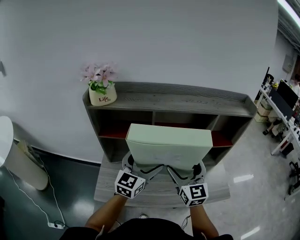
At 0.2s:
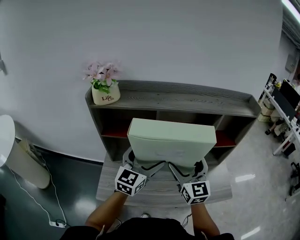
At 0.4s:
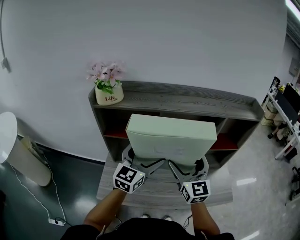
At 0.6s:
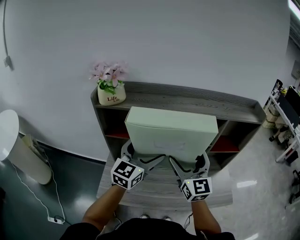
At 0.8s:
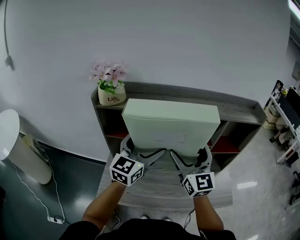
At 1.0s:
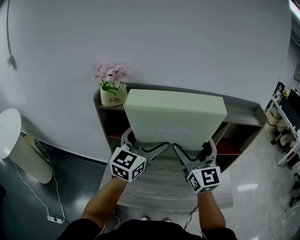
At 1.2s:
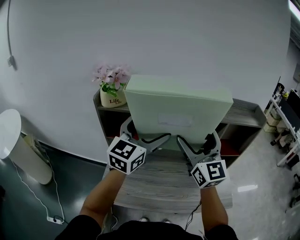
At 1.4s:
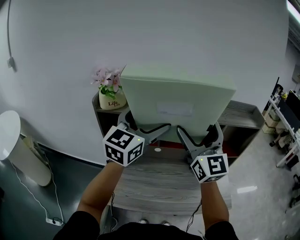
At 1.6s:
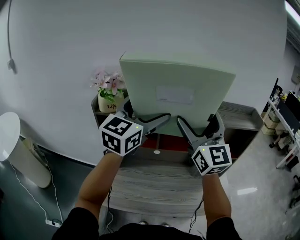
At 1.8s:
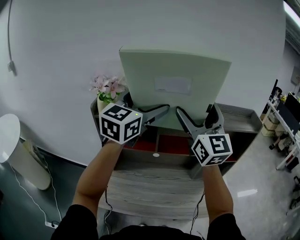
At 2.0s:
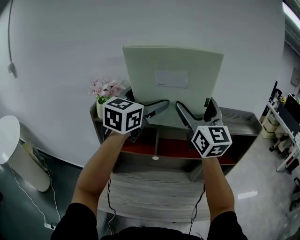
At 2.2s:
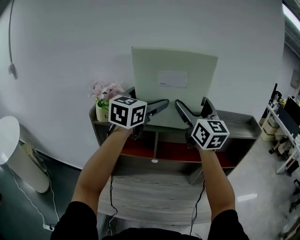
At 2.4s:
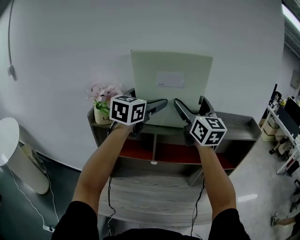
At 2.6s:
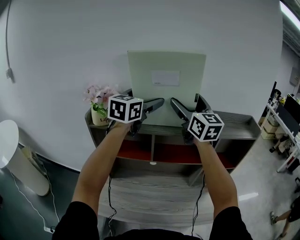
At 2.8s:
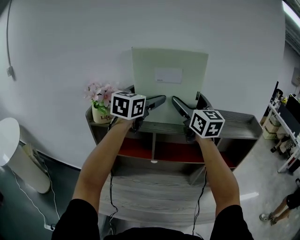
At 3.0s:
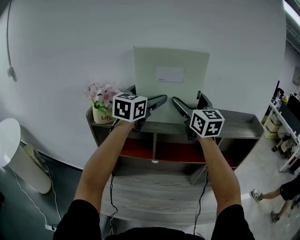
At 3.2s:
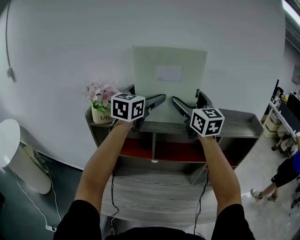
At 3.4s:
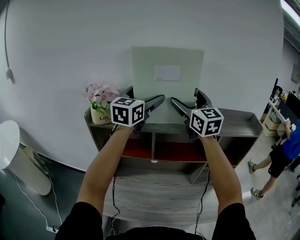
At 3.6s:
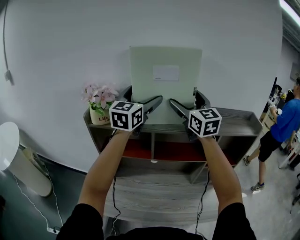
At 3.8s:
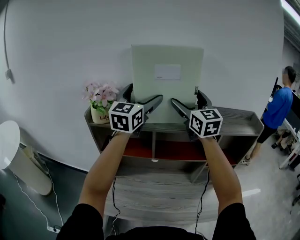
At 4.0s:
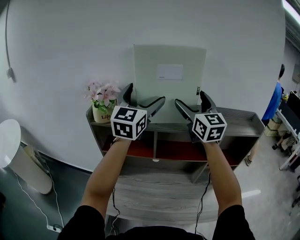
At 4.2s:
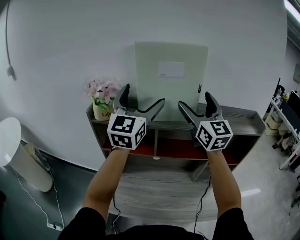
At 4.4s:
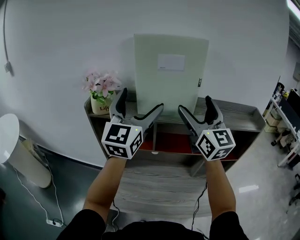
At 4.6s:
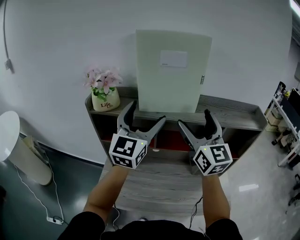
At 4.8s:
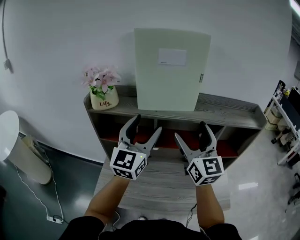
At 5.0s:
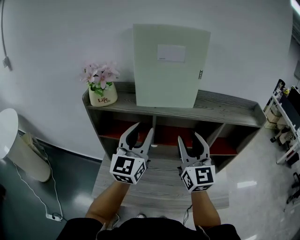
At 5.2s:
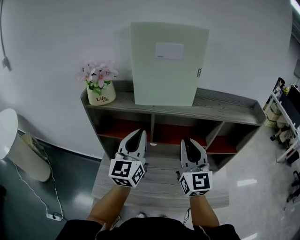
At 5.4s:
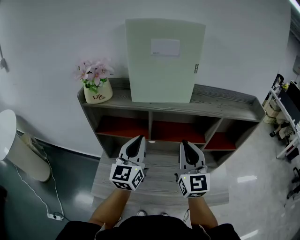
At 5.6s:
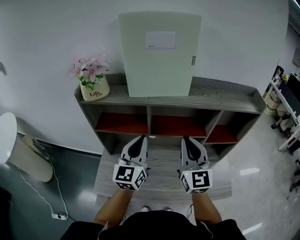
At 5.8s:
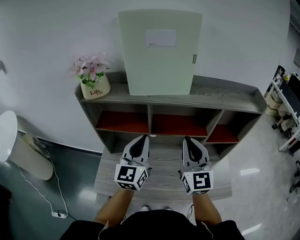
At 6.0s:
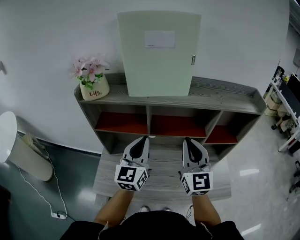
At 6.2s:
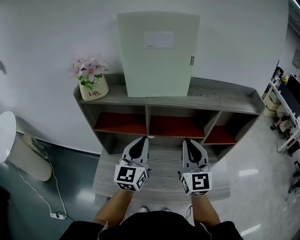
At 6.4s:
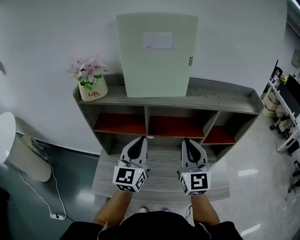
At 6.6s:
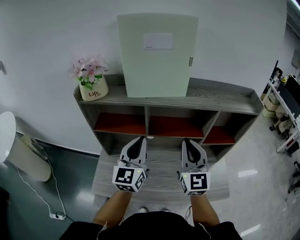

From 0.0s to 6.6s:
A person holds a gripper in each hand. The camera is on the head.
From 0.0s to 1.6s: Both grippers move upward, roughly 25 cm. The right gripper turns by approximately 20 degrees.
From 1.6s to 3.2s: Both grippers move forward, roughly 15 cm.
From 3.2s to 5.0s: Both grippers travel together backward and downward, some 20 cm. The left gripper closes. Meanwhile the right gripper closes its fingers.
From 5.0s to 6.6s: The two grippers go approximately 5 cm downward. The right gripper closes its fingers.

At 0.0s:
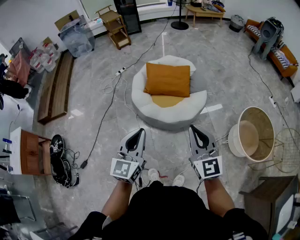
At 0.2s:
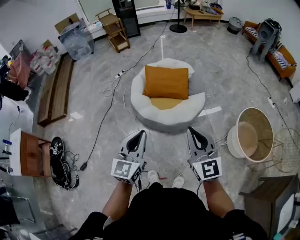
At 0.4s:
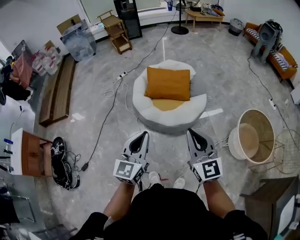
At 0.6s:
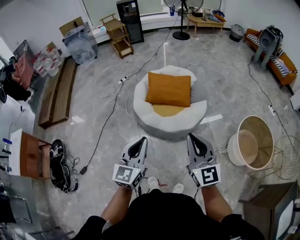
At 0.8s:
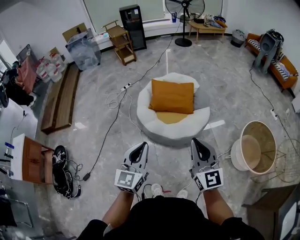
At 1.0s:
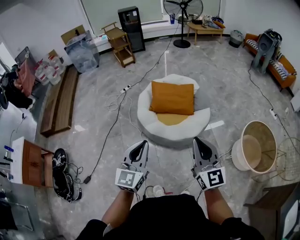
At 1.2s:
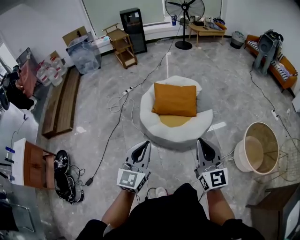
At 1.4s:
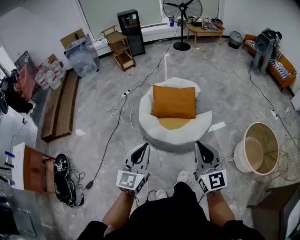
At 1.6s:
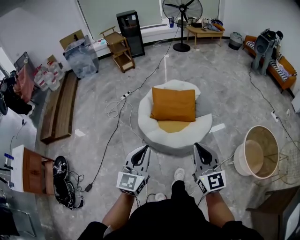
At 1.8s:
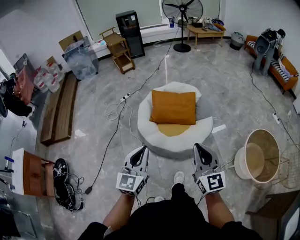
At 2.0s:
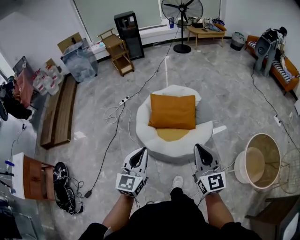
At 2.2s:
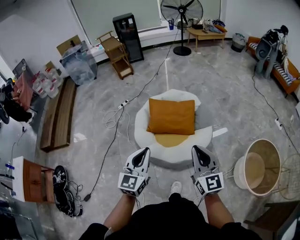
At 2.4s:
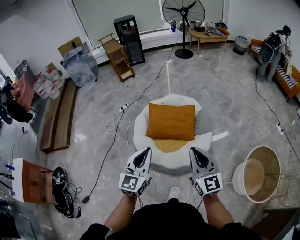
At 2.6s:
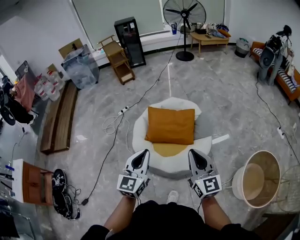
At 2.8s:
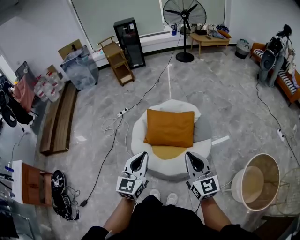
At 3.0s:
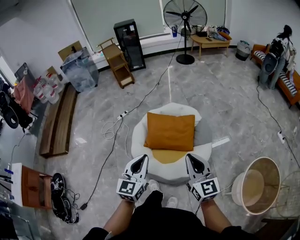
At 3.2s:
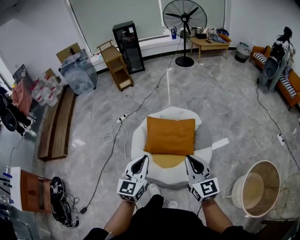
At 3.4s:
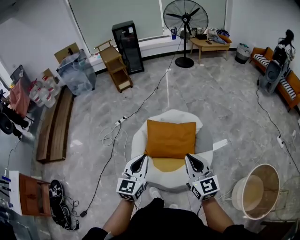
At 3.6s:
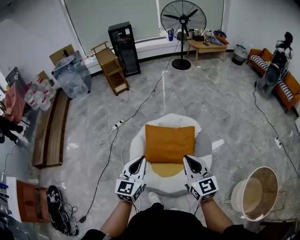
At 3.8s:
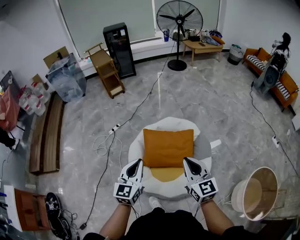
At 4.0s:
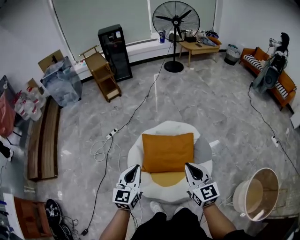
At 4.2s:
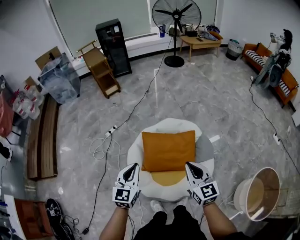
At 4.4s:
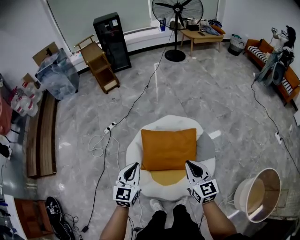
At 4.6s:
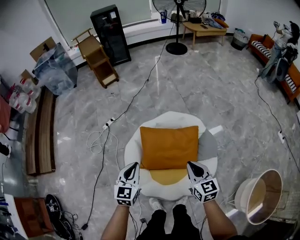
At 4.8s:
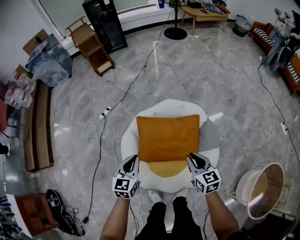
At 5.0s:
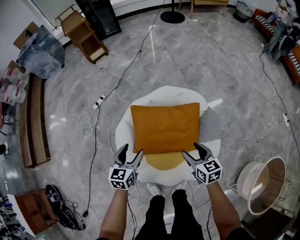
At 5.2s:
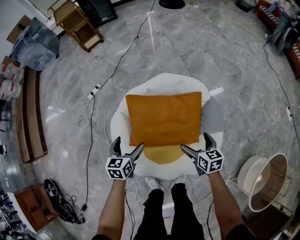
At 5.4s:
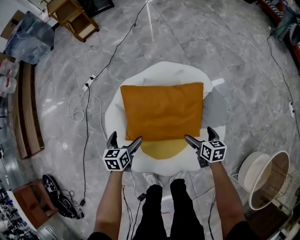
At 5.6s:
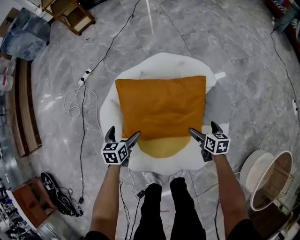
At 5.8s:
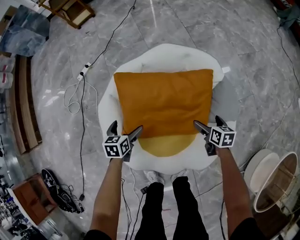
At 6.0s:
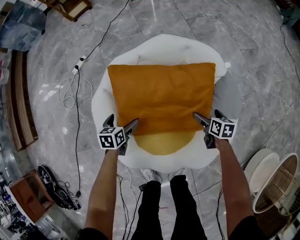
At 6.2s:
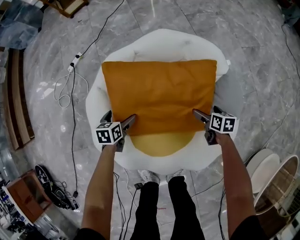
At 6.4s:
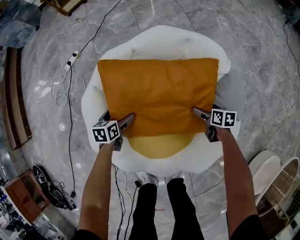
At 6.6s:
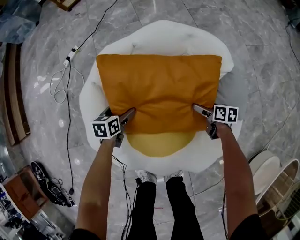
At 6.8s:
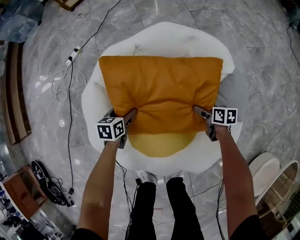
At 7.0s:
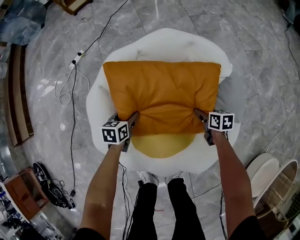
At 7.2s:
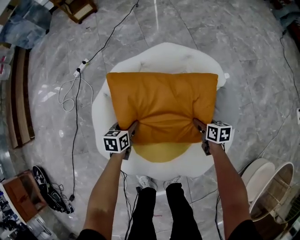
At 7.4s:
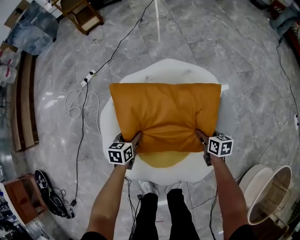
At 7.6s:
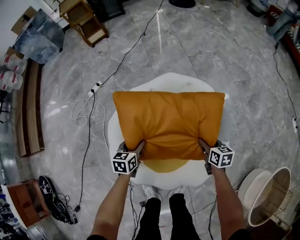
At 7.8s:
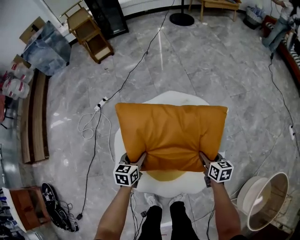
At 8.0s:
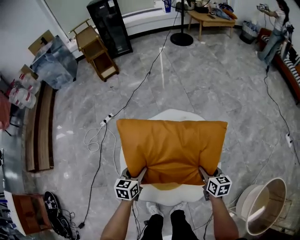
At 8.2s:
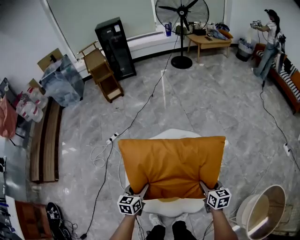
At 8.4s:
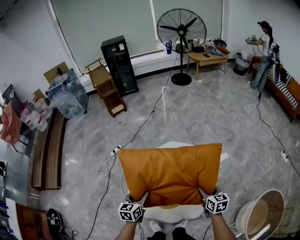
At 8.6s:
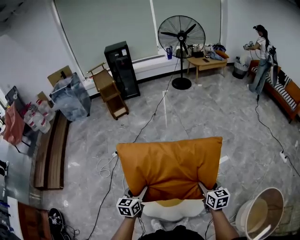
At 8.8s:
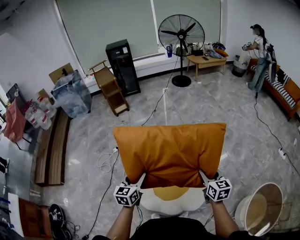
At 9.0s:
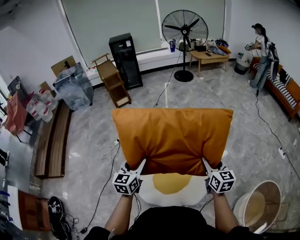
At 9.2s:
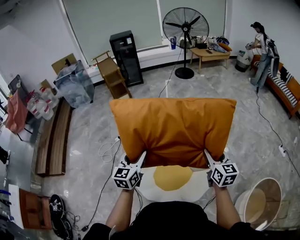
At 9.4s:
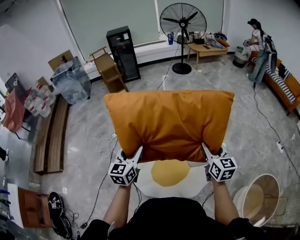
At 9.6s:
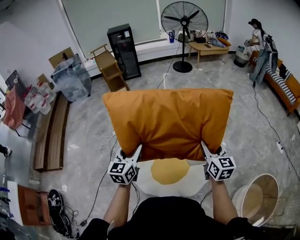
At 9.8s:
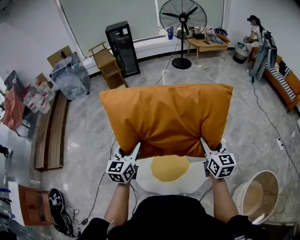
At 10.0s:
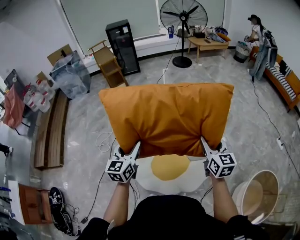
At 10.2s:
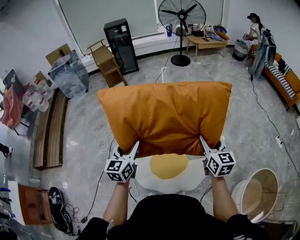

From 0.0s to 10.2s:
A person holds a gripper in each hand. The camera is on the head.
From 0.0s to 1.4s: The left gripper heads to the left, covering some 5 cm.
From 1.4s to 3.0s: Both grippers move forward, approximately 30 cm.
From 3.0s to 4.4s: The grippers both shift forward and downward by approximately 30 cm.
From 4.4s to 5.8s: The two grippers go approximately 50 cm downward. The left gripper tilts its fingers some 30 degrees downward, and opens; the right gripper tips its fingers downward by some 30 degrees, and opens its fingers.
From 5.8s to 7.2s: The right gripper moves downward, roughly 5 cm, and closes, while the left gripper closes its fingers.
From 7.2s to 8.8s: Both grippers travel together upward, about 60 cm. The left gripper tilts its fingers about 30 degrees upward, while the right gripper swivels roughly 40 degrees.
From 8.8s to 10.2s: Both grippers move upward, some 10 cm.

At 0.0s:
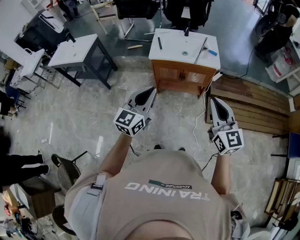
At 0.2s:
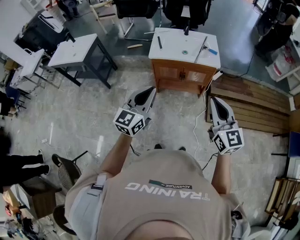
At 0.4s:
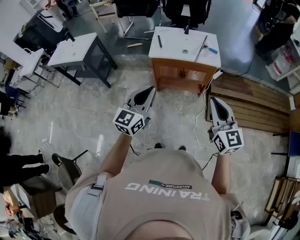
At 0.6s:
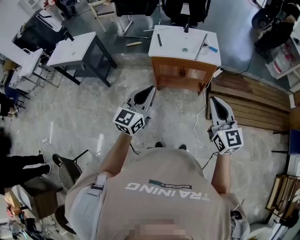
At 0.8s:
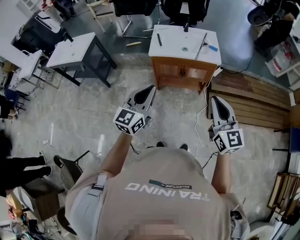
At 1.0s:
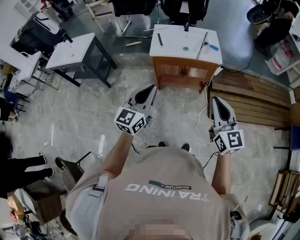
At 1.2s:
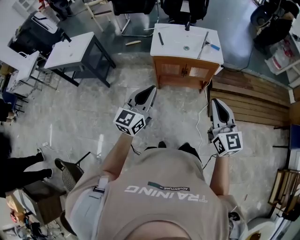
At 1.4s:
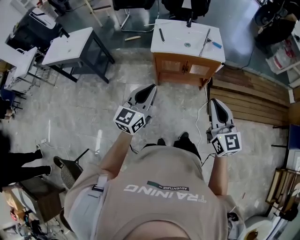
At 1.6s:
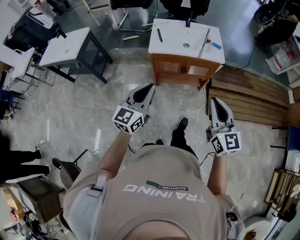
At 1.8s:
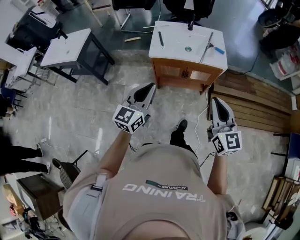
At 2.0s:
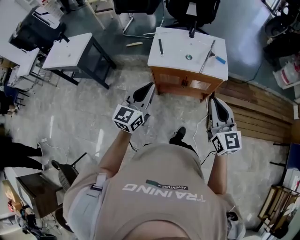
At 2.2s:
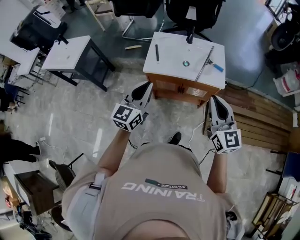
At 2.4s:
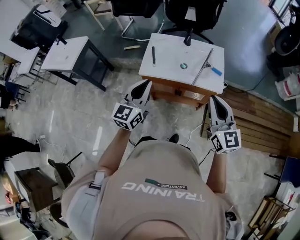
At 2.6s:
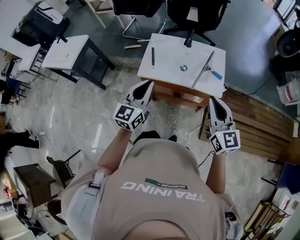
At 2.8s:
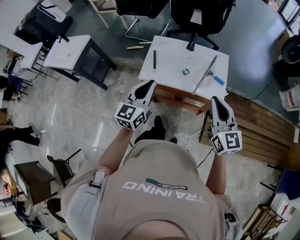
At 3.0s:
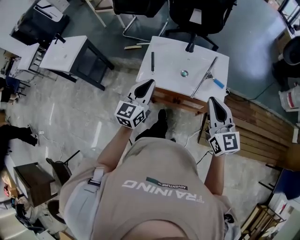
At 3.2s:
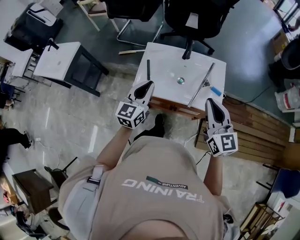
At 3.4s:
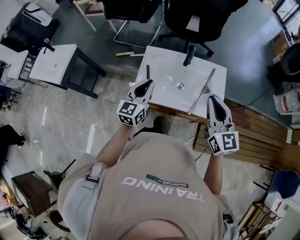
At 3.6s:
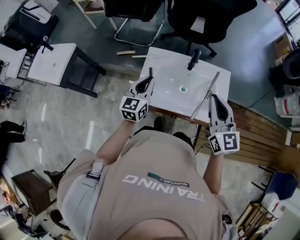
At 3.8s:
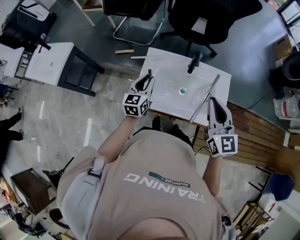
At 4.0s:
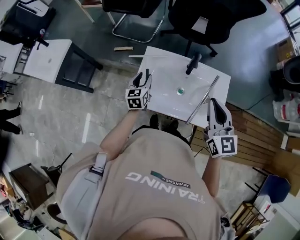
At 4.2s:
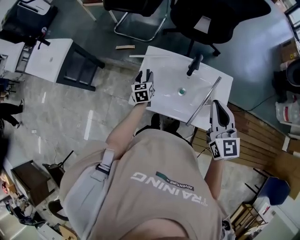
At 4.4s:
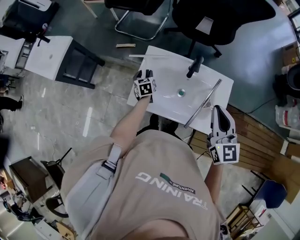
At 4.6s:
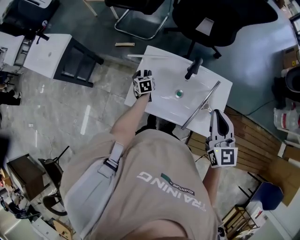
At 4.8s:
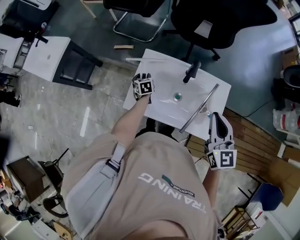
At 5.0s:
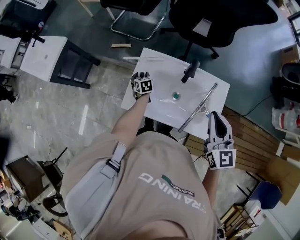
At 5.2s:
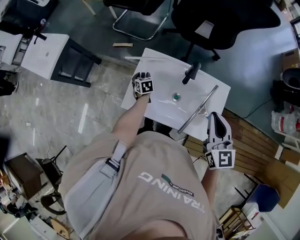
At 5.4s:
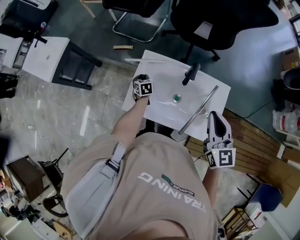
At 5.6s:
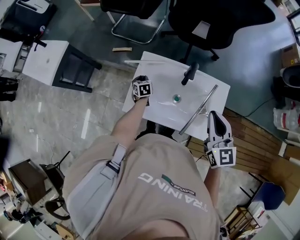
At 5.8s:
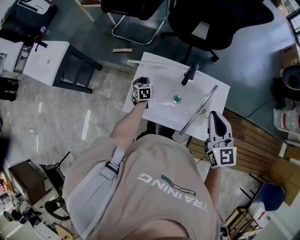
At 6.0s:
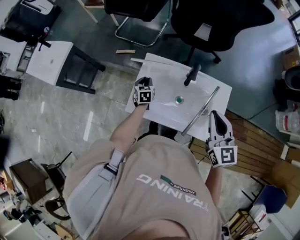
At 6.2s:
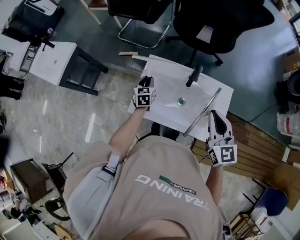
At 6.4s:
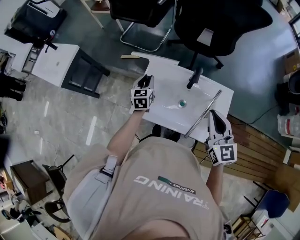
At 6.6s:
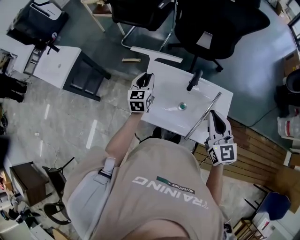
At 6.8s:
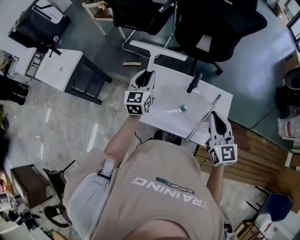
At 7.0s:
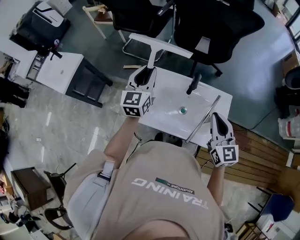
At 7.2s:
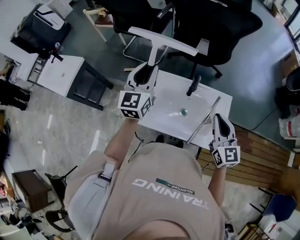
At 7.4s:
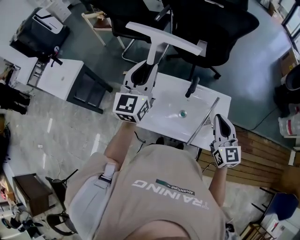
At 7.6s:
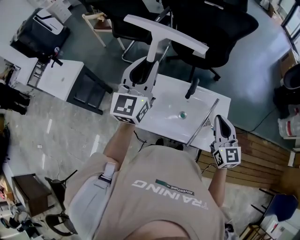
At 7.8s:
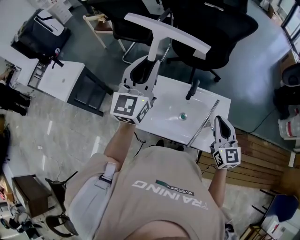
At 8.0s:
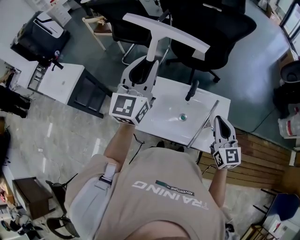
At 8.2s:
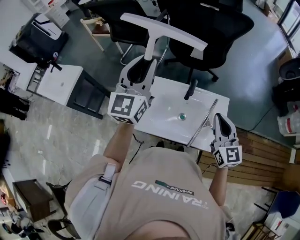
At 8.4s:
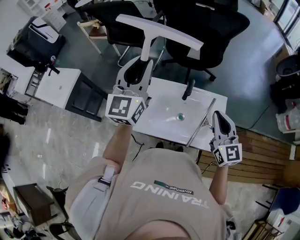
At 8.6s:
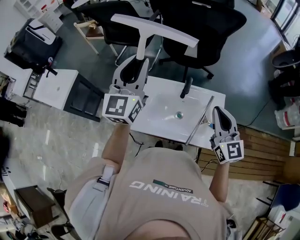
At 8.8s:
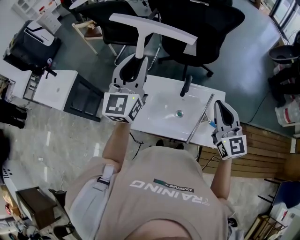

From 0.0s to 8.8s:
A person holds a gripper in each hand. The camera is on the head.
From 0.0s to 1.4s: The grippers both shift to the left by roughly 5 cm.
From 1.4s to 3.0s: The grippers both shift forward by about 35 cm.
From 3.0s to 4.4s: The right gripper is displaced forward by about 20 cm, while the left gripper goes roughly 40 cm forward and downward, points its fingers roughly 30 degrees further downward, and opens up.
From 4.4s to 5.8s: The left gripper closes up.
From 5.8s to 7.4s: The left gripper shifts approximately 50 cm upward, and angles its fingers upward, by some 50 degrees.
From 7.4s to 8.8s: The grippers both shift upward by approximately 5 cm.
